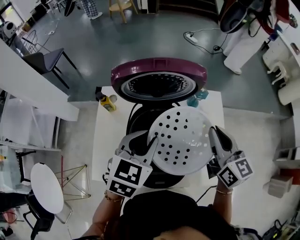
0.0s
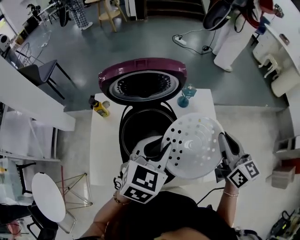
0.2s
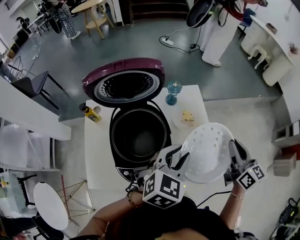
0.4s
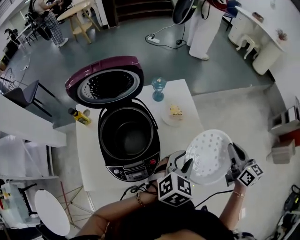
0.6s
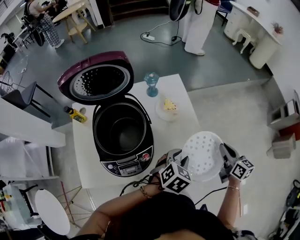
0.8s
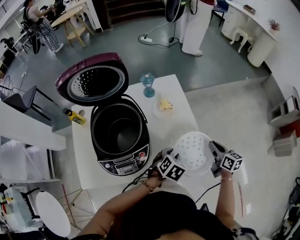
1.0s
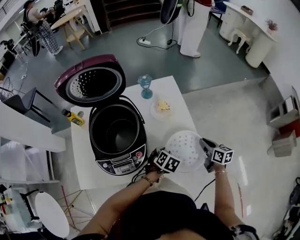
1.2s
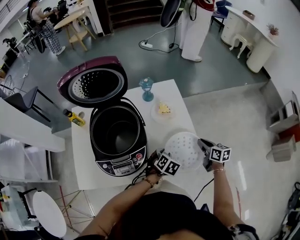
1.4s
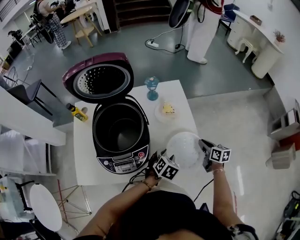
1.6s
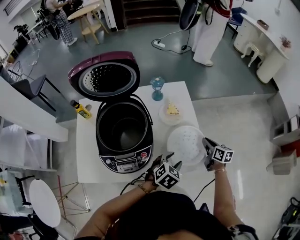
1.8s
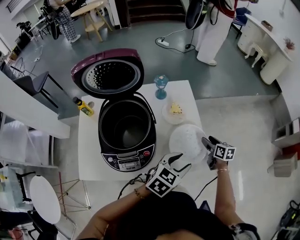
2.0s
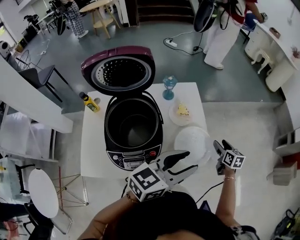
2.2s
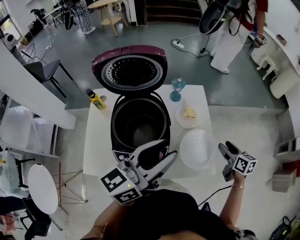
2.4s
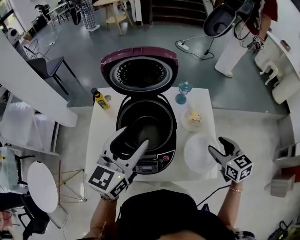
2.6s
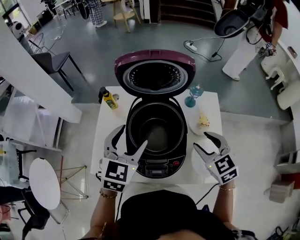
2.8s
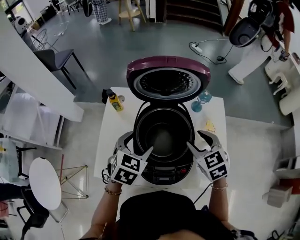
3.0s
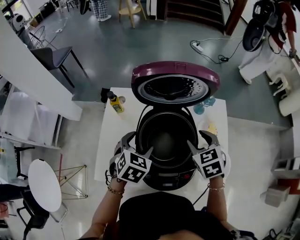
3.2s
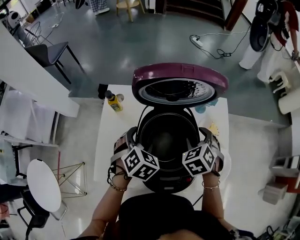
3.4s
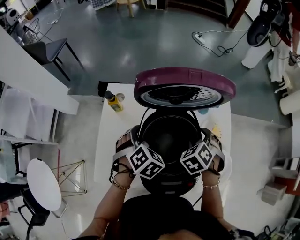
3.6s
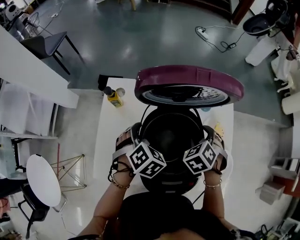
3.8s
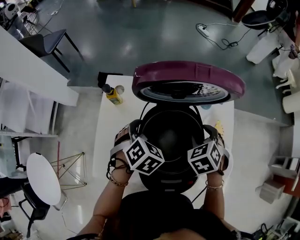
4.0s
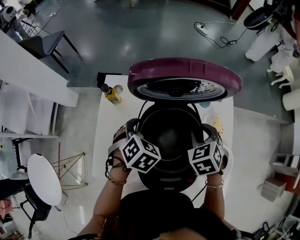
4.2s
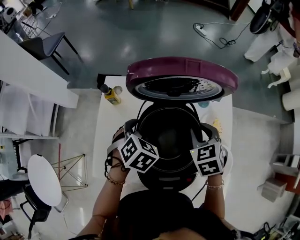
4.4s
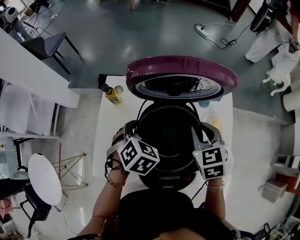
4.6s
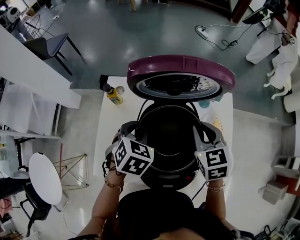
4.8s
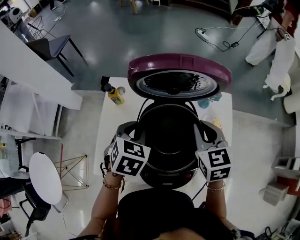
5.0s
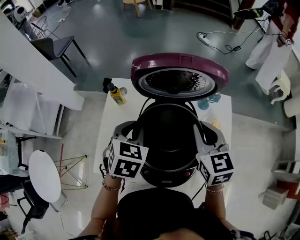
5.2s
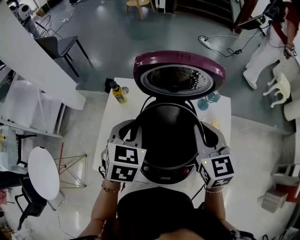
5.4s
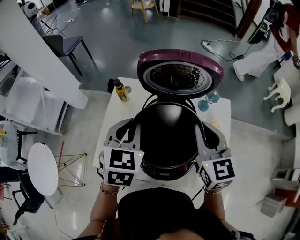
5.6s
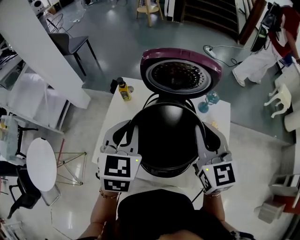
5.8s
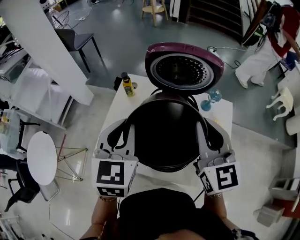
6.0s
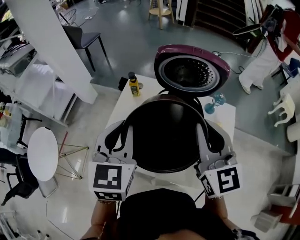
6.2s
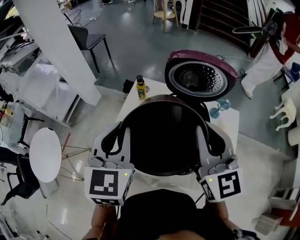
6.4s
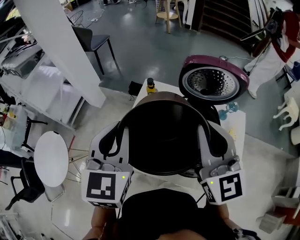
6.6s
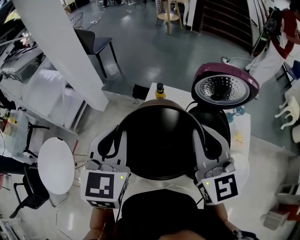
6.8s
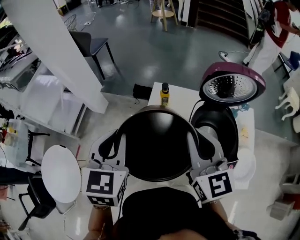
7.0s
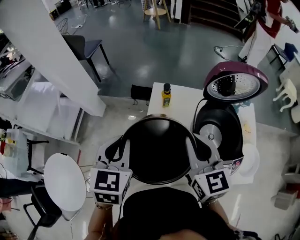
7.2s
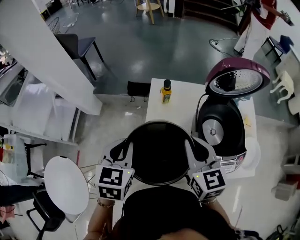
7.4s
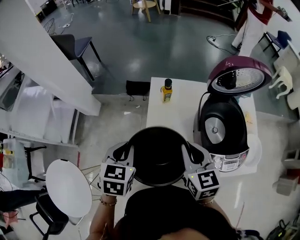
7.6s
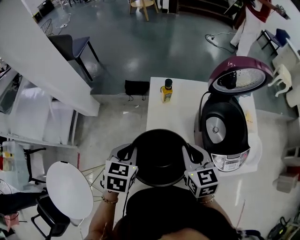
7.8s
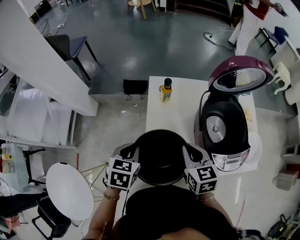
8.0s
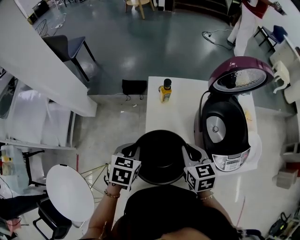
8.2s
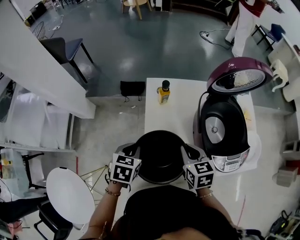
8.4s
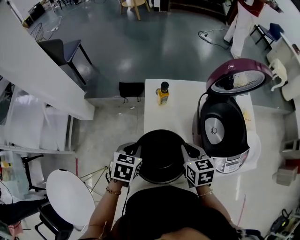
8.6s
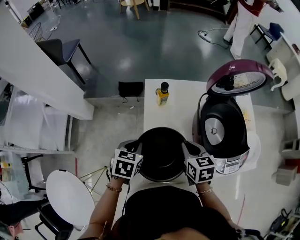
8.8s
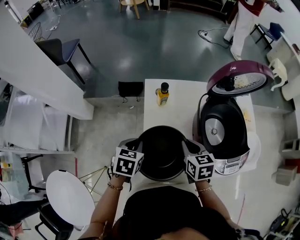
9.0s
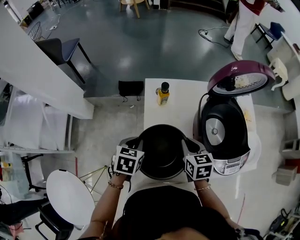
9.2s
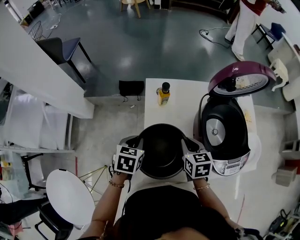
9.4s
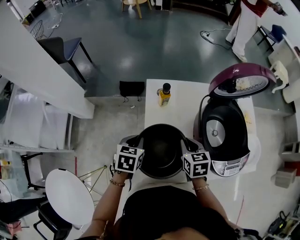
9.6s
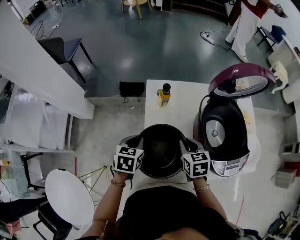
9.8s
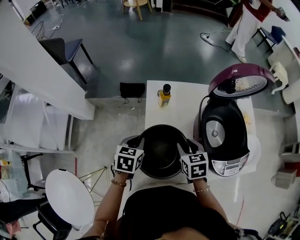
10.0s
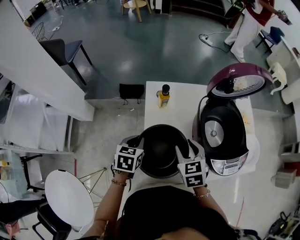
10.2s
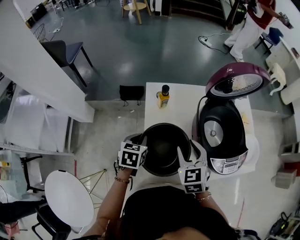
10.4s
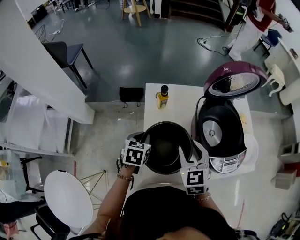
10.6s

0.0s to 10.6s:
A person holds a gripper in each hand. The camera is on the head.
0.0s to 1.6s: The left gripper heads to the right and downward, covering some 40 cm, and rotates roughly 30 degrees. The right gripper is displaced downward and to the right by about 40 cm, and swivels about 30 degrees.
1.6s to 3.0s: The right gripper moves about 40 cm, rolls counterclockwise, seen from behind, by approximately 50 degrees, and opens. The left gripper moves about 35 cm, and rotates roughly 20 degrees.
3.0s to 4.6s: Both grippers move forward, about 10 cm.
4.6s to 6.0s: Both grippers travel together upward and backward, approximately 20 cm. The right gripper points its fingers about 40 degrees further upward. The left gripper tips its fingers upward by about 40 degrees.
6.0s to 7.6s: The grippers both shift to the left and downward by approximately 30 cm. The right gripper swivels some 30 degrees; the left gripper rotates about 30 degrees.
7.6s to 9.0s: The grippers both shift downward and forward by roughly 15 cm.
9.0s to 10.6s: The right gripper travels upward by approximately 5 cm, and rotates about 30 degrees.

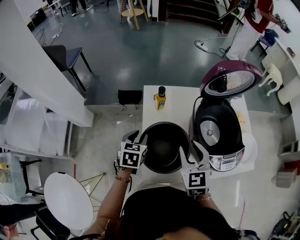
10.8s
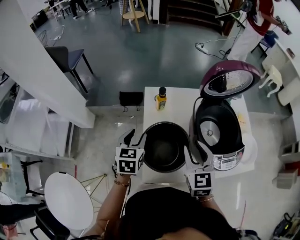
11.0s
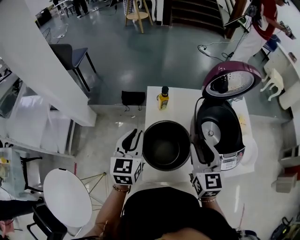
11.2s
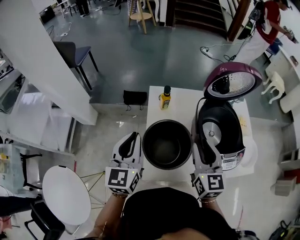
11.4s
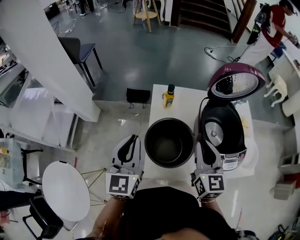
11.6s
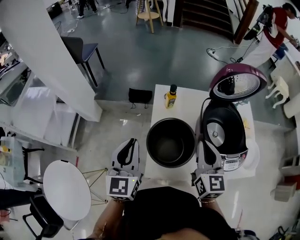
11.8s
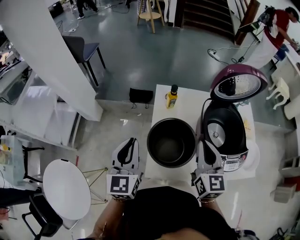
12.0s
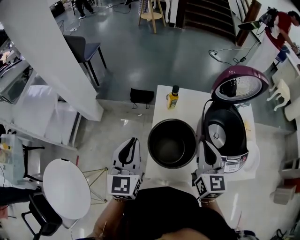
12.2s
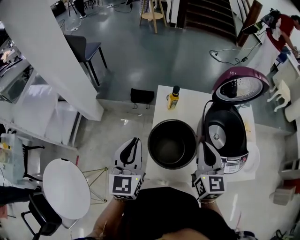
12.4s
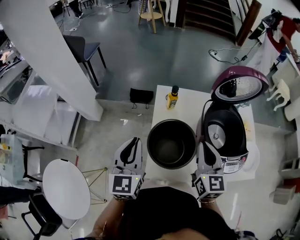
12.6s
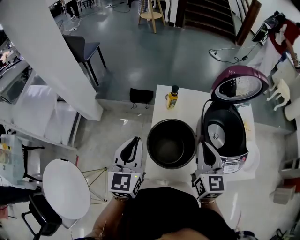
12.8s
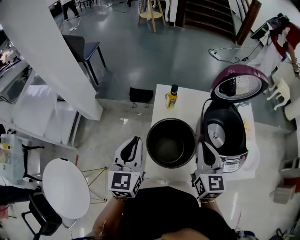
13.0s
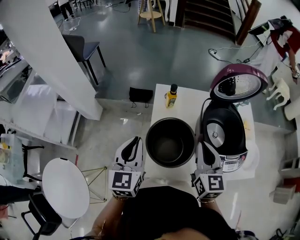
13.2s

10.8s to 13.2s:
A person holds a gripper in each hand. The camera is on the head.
10.8s to 12.0s: The right gripper moves upward, roughly 5 cm, changes its angle by some 20 degrees, and closes its fingers; the left gripper shifts approximately 20 cm upward and backward, and points its fingers approximately 40 degrees further upward.
12.0s to 13.2s: The grippers move only a little.

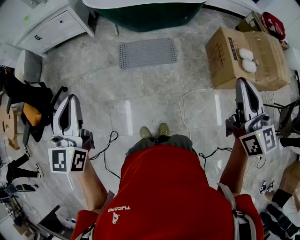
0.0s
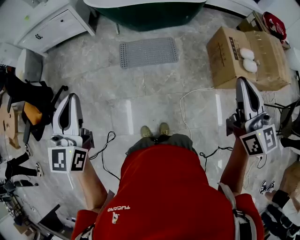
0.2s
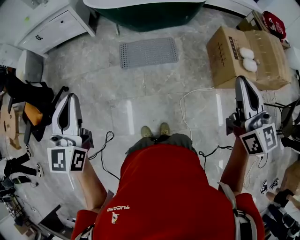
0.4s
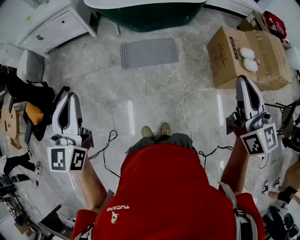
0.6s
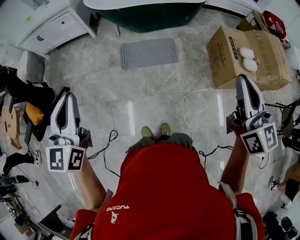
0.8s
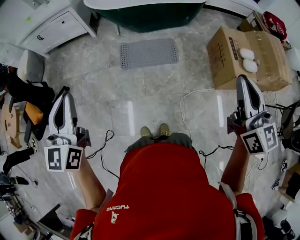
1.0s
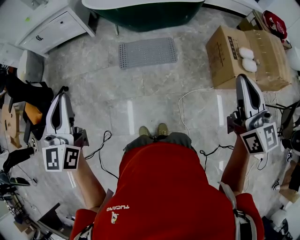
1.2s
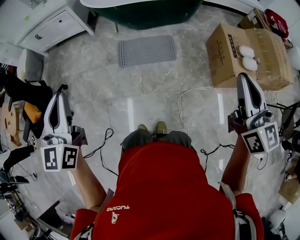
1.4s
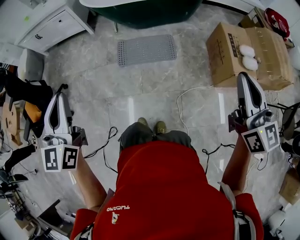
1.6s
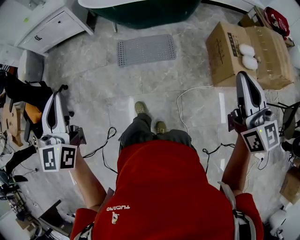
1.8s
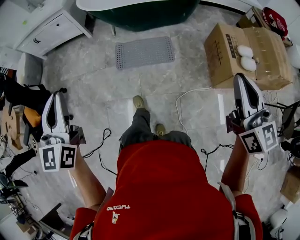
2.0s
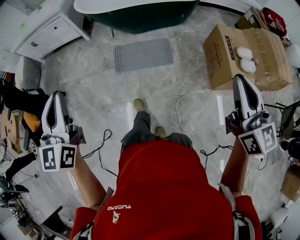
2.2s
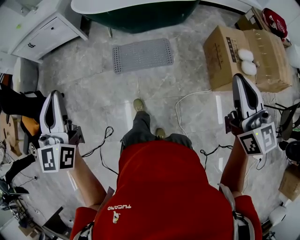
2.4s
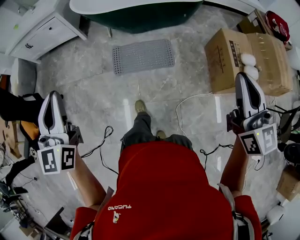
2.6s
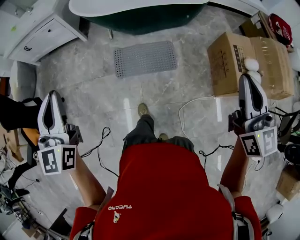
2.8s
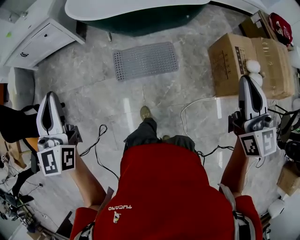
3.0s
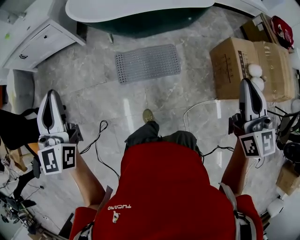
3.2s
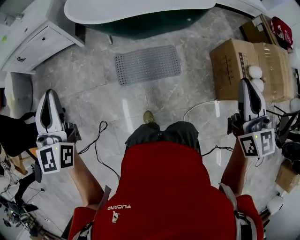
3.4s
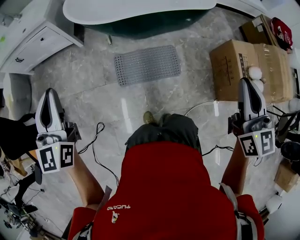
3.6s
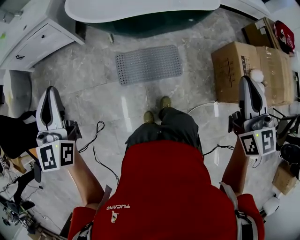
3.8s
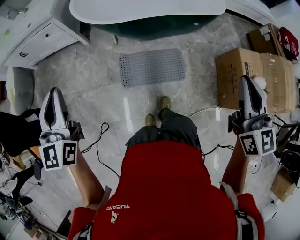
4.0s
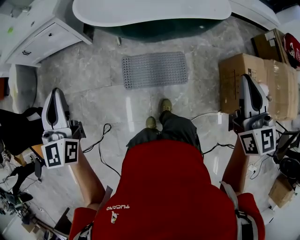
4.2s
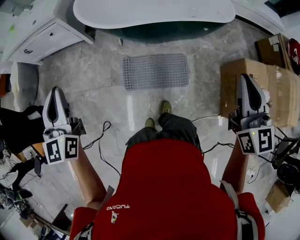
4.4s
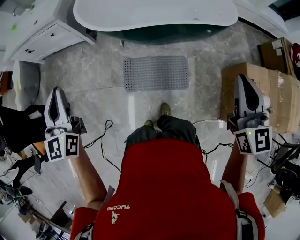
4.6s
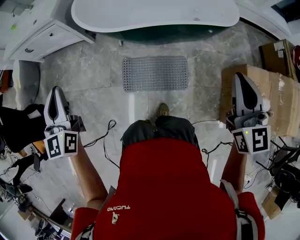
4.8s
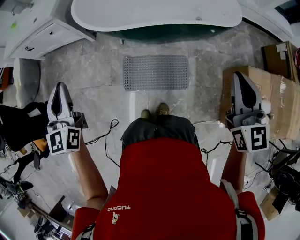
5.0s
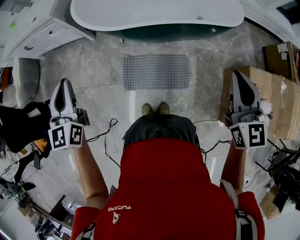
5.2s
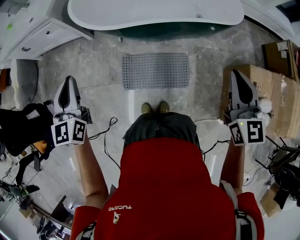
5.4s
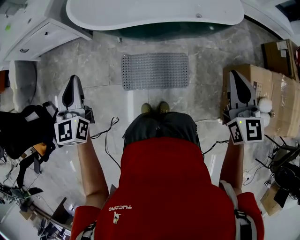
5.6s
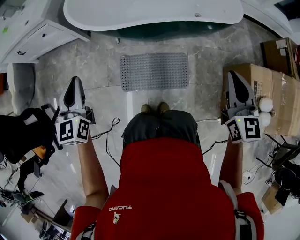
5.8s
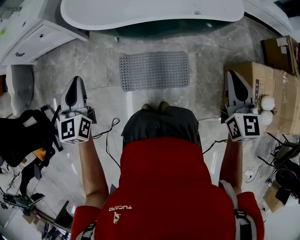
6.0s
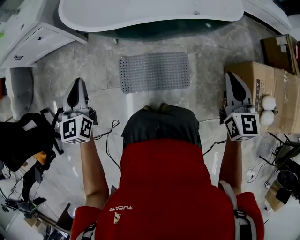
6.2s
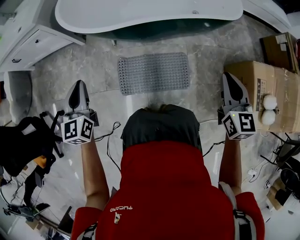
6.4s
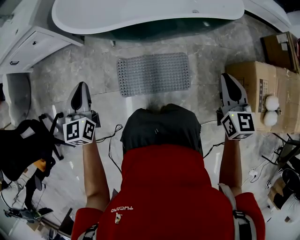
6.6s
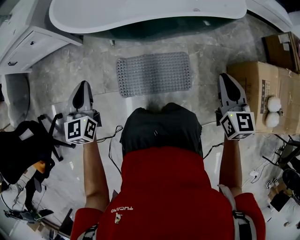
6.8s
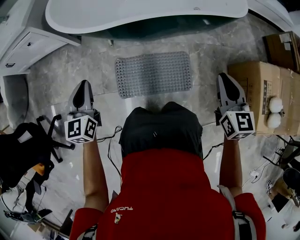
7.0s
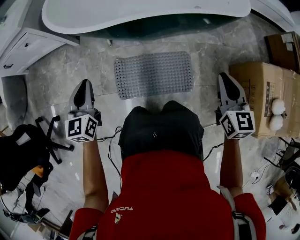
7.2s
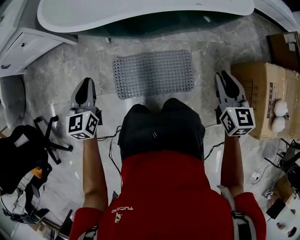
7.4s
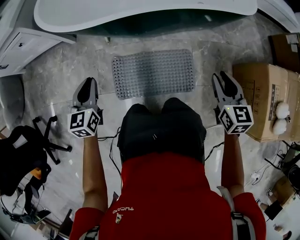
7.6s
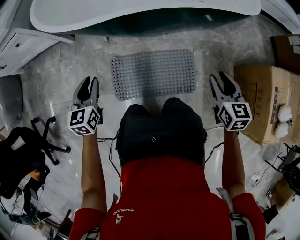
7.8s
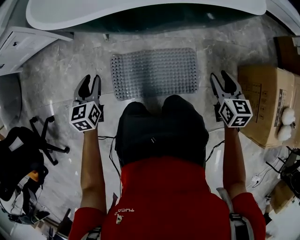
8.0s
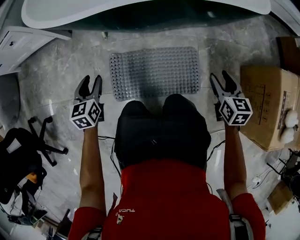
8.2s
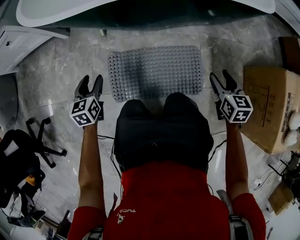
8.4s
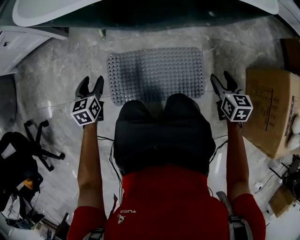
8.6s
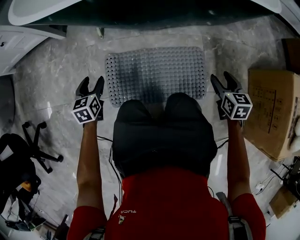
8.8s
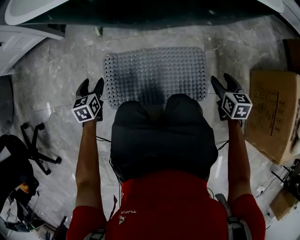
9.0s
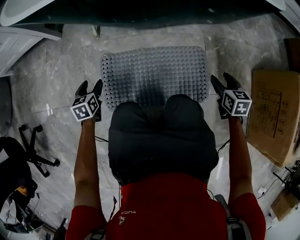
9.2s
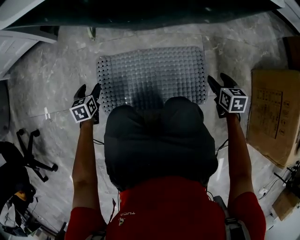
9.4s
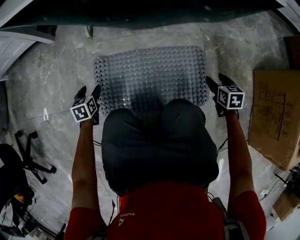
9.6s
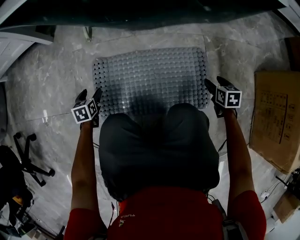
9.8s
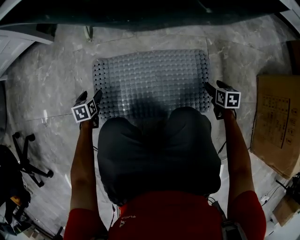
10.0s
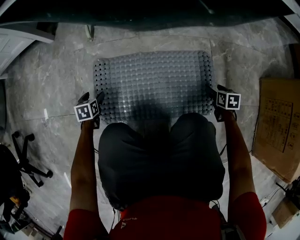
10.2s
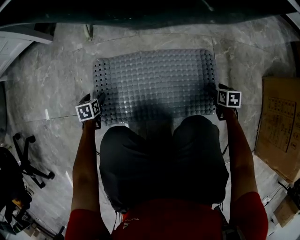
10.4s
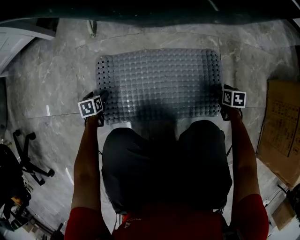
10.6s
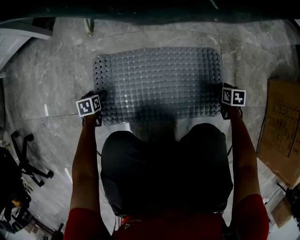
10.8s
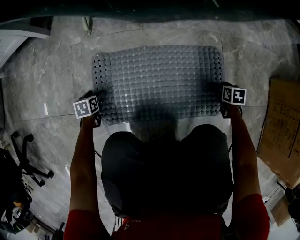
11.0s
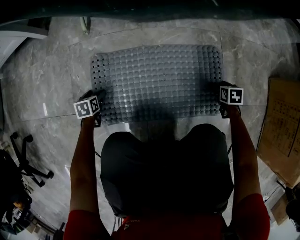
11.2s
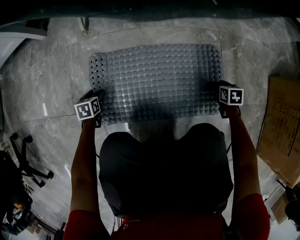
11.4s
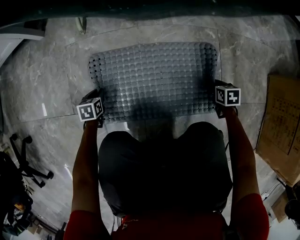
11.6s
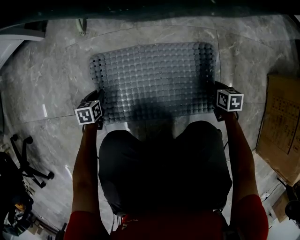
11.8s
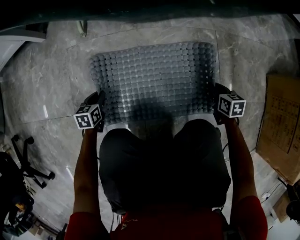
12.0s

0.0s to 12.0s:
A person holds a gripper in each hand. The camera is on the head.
0.0s to 1.6s: The right gripper moves to the right, approximately 5 cm.
1.6s to 3.0s: Both grippers travel together forward, approximately 25 cm.
3.0s to 4.4s: Both grippers move forward, some 20 cm.
4.4s to 6.0s: Both grippers move downward and forward, about 20 cm.
6.0s to 7.6s: The two grippers go about 25 cm downward.
7.6s to 9.0s: Both grippers travel together downward, approximately 30 cm. The left gripper changes its angle by some 20 degrees, and opens its fingers; the right gripper opens up.
9.0s to 10.4s: The grippers both shift downward by approximately 25 cm. The right gripper rotates roughly 20 degrees.
10.4s to 12.0s: The right gripper heads to the left, covering roughly 5 cm, and closes, while the left gripper heads to the right, covering about 5 cm, and closes.
